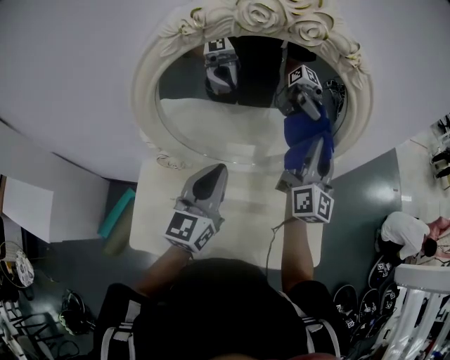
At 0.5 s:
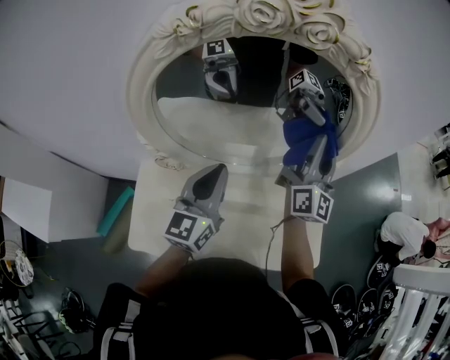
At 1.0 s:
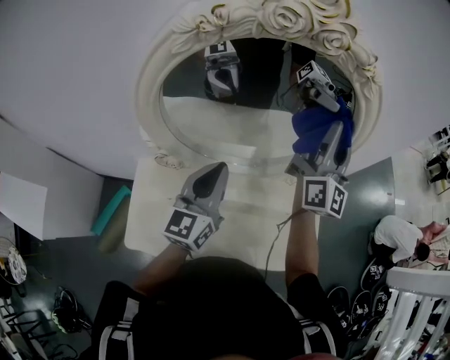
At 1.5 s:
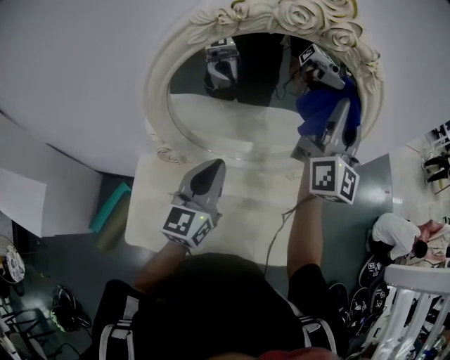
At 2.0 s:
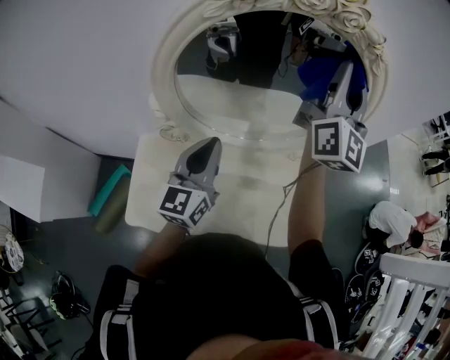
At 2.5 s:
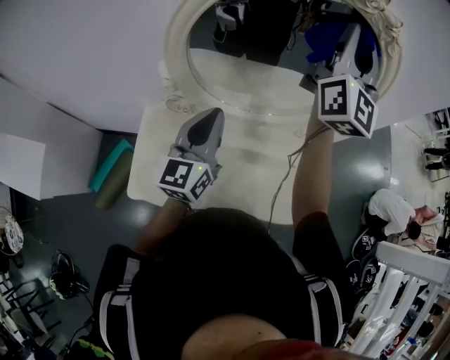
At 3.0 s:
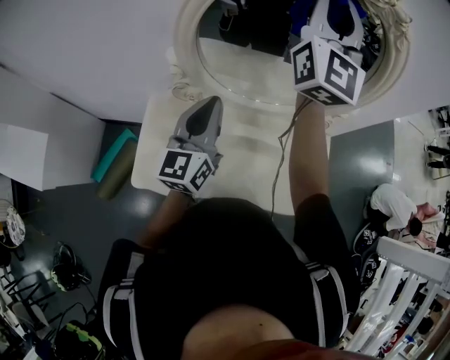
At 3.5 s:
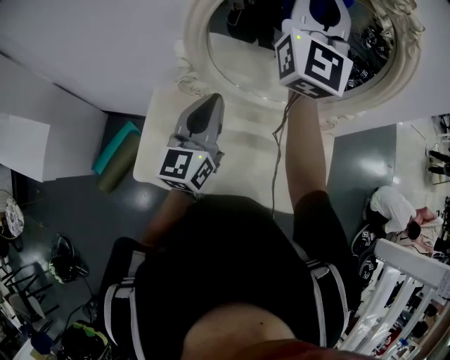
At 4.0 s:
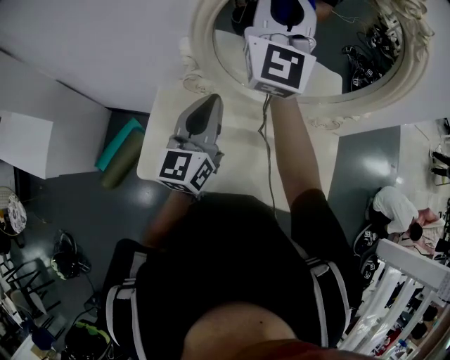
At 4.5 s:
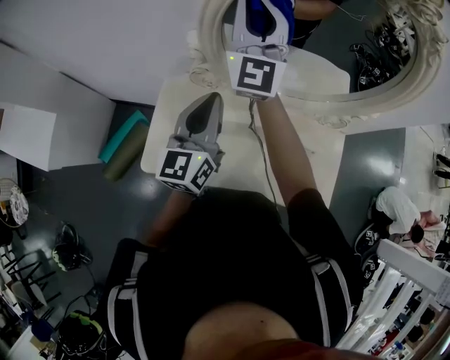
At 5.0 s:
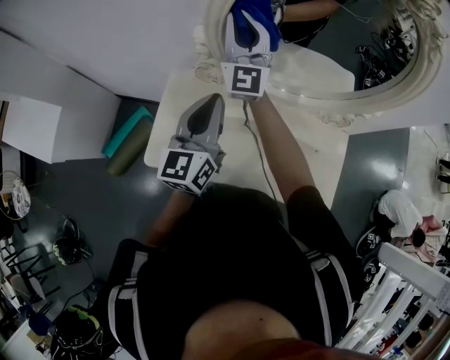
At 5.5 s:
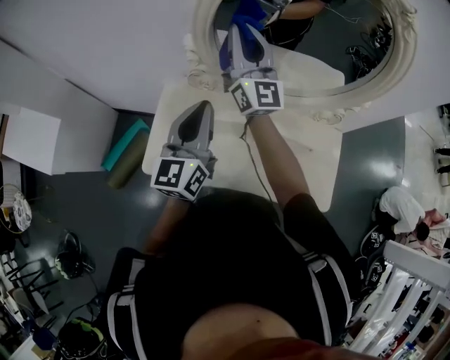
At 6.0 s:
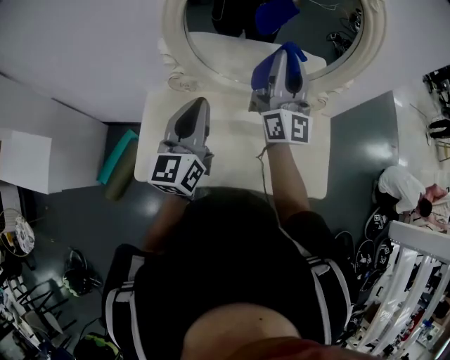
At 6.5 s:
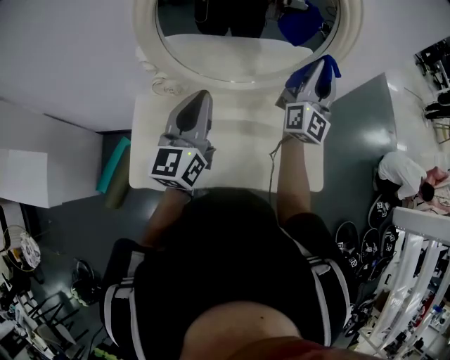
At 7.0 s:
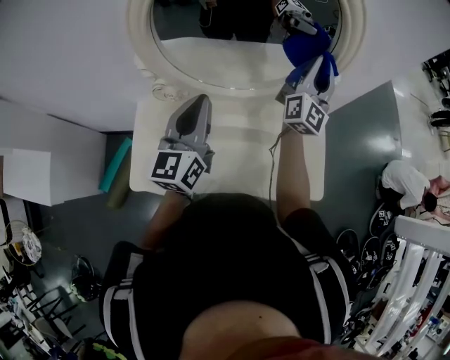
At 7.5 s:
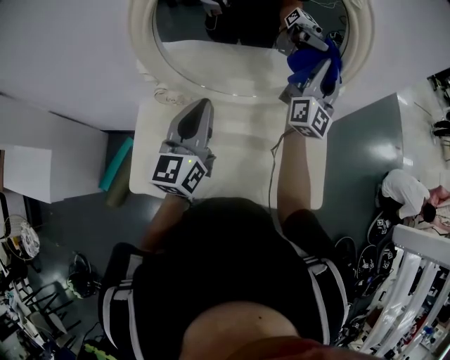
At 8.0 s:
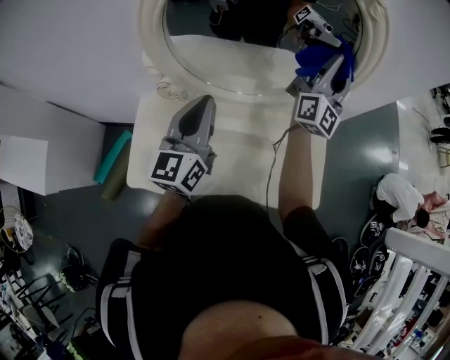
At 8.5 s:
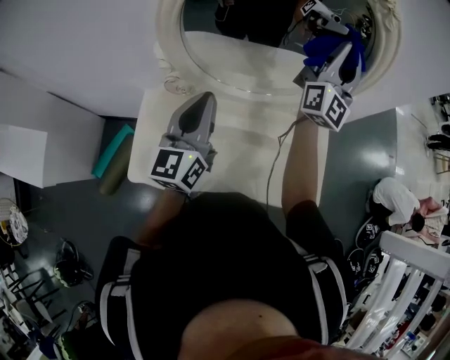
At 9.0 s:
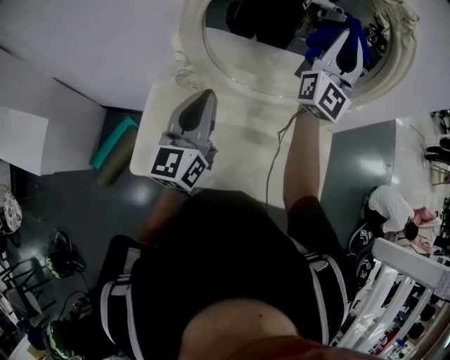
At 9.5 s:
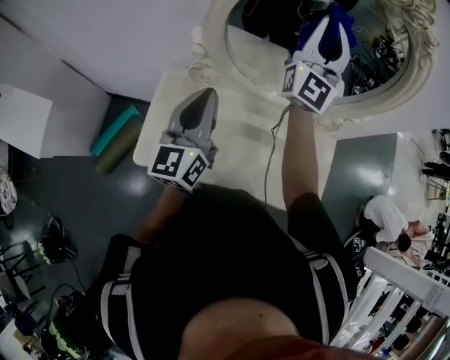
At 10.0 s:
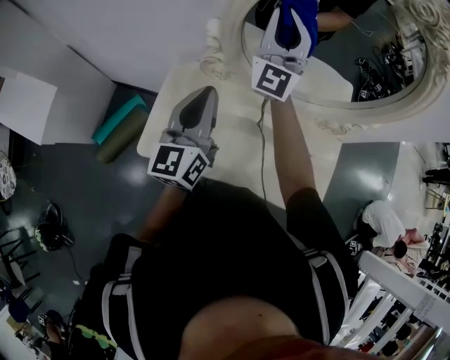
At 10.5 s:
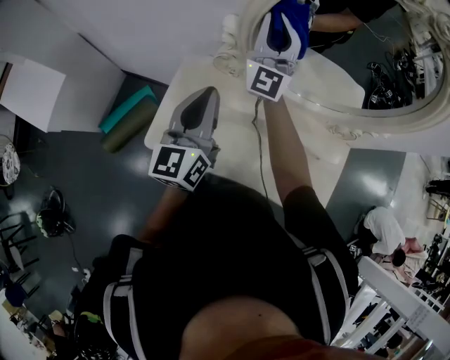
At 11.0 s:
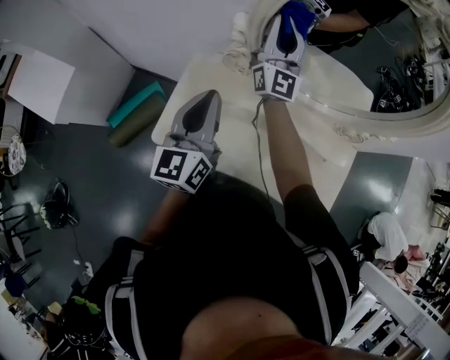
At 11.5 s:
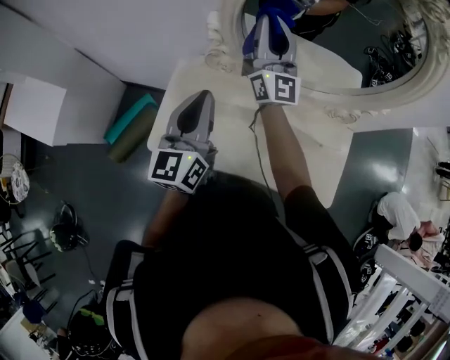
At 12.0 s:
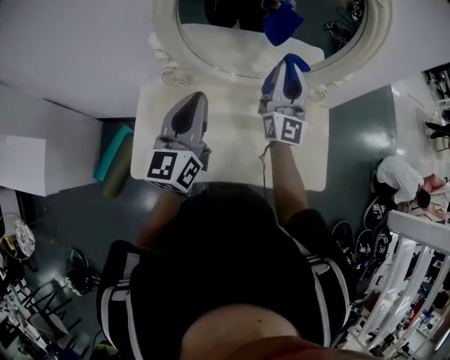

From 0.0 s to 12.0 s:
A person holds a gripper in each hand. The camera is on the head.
From 0.0 s to 2.0 s: The right gripper is displaced upward and to the left by approximately 20 cm. The left gripper ends up approximately 5 cm from where it was.
From 2.0 s to 4.0 s: The left gripper shifts roughly 10 cm to the left, while the right gripper shifts approximately 25 cm to the left, and rotates some 20 degrees.
From 4.0 s to 6.0 s: The right gripper heads to the right, downward and backward, covering roughly 20 cm, and swivels some 30 degrees. Meanwhile the left gripper changes place by roughly 5 cm.
From 6.0 s to 8.0 s: The left gripper goes approximately 5 cm forward, while the right gripper is displaced to the right and forward by roughly 20 cm, and turns by some 20 degrees.
From 8.0 s to 10.0 s: The left gripper ends up about 15 cm from where it was, while the right gripper moves roughly 10 cm upward and comes back, and changes its angle by some 40 degrees.
From 10.0 s to 12.0 s: The right gripper is displaced to the right, backward and downward by some 25 cm, and rotates approximately 20 degrees, while the left gripper shifts about 10 cm to the right.

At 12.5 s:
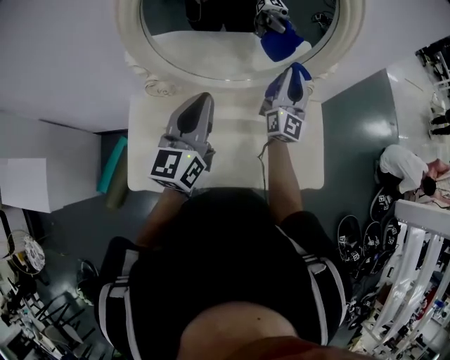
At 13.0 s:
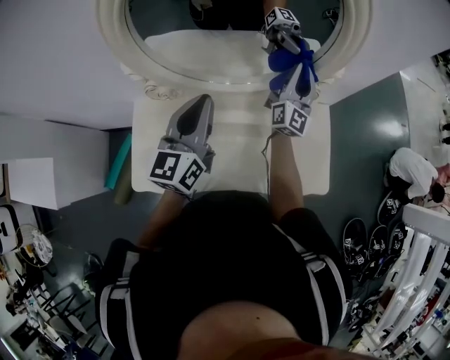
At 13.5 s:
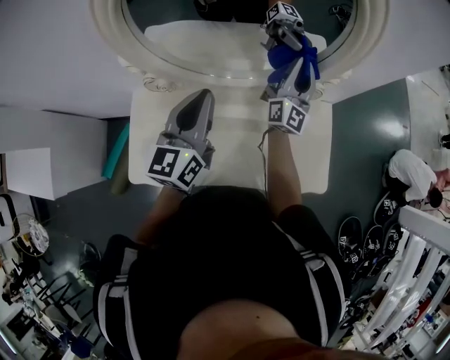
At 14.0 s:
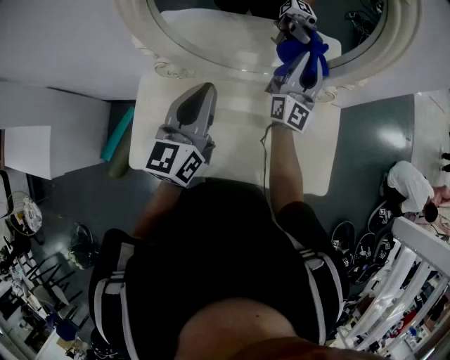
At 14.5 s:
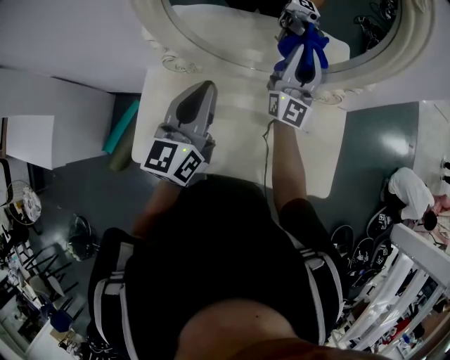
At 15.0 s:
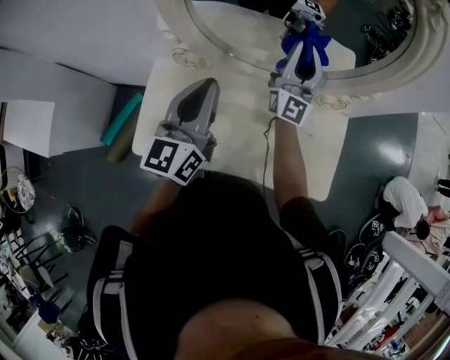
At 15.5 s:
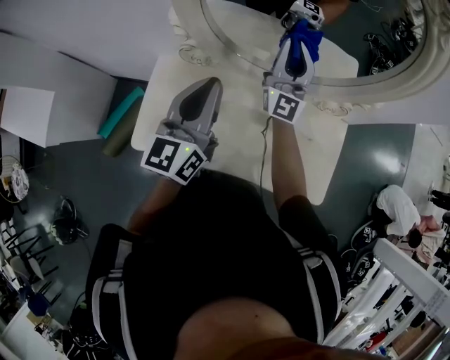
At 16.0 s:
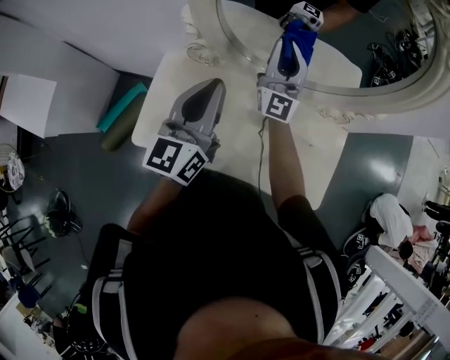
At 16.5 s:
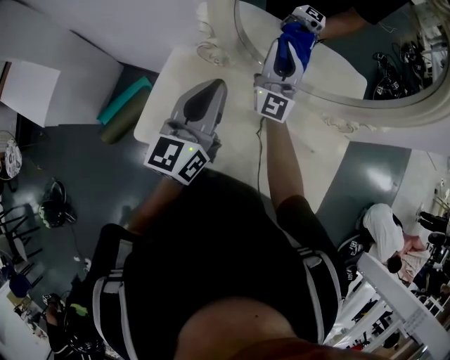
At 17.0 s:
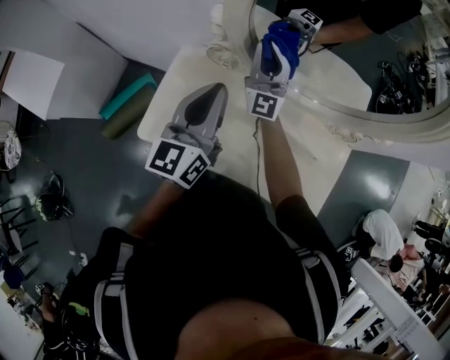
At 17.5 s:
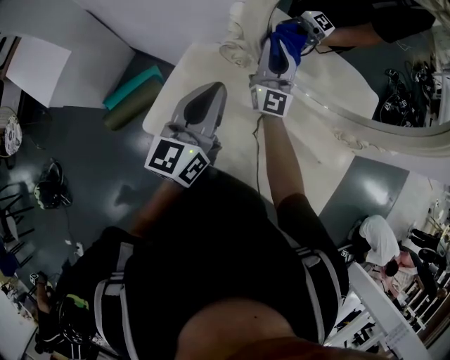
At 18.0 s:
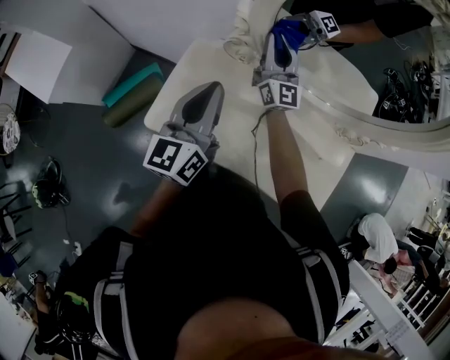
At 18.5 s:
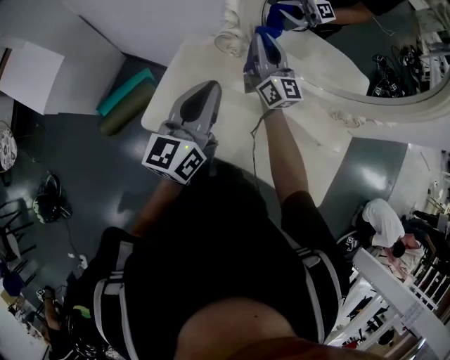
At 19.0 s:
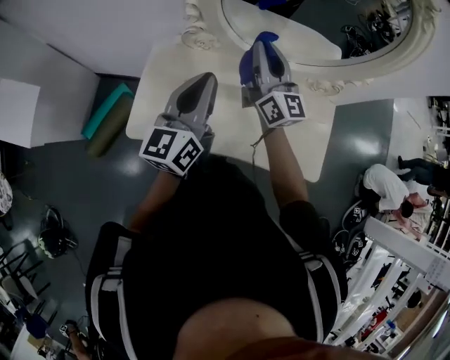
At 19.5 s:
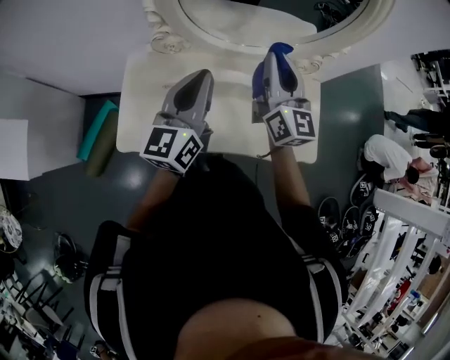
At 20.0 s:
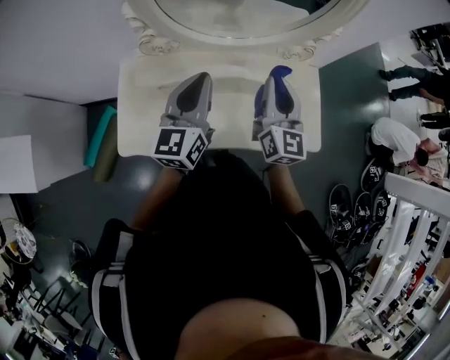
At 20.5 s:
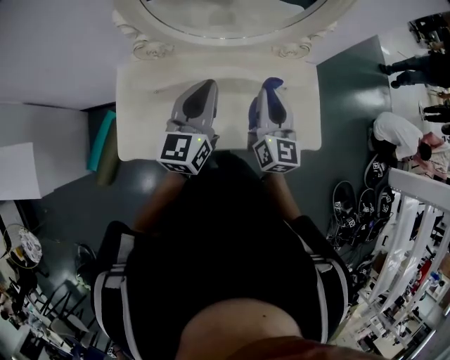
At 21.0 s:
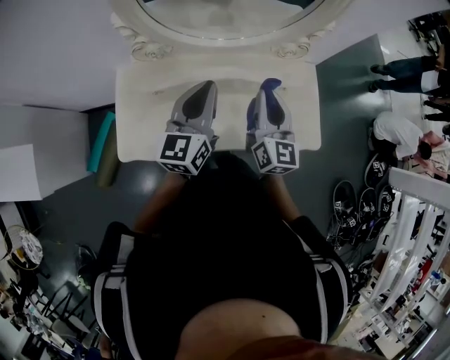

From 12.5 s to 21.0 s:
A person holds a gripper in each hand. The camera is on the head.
From 12.5 s to 14.5 s: The right gripper shifts roughly 10 cm to the left.
From 14.5 s to 16.5 s: The left gripper heads to the left, covering approximately 5 cm, while the right gripper heads to the left, covering some 15 cm, and changes its angle by approximately 20 degrees.
From 16.5 s to 19.0 s: The left gripper goes approximately 5 cm backward. The right gripper travels backward by roughly 10 cm, and changes its angle by approximately 40 degrees.
From 19.0 s to 21.0 s: The left gripper heads to the right, covering roughly 15 cm, while the right gripper travels to the right and backward by roughly 20 cm, and swivels about 30 degrees.

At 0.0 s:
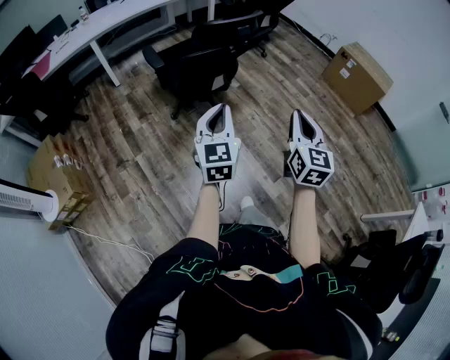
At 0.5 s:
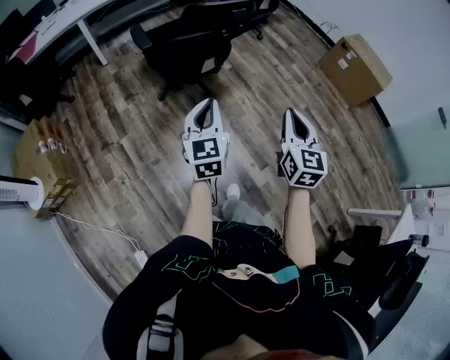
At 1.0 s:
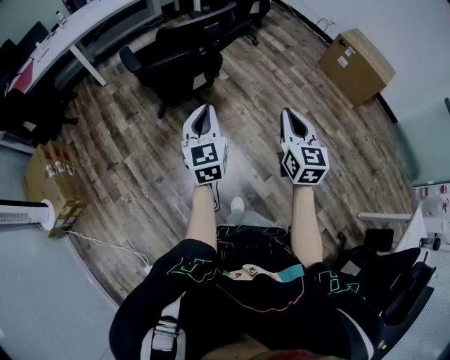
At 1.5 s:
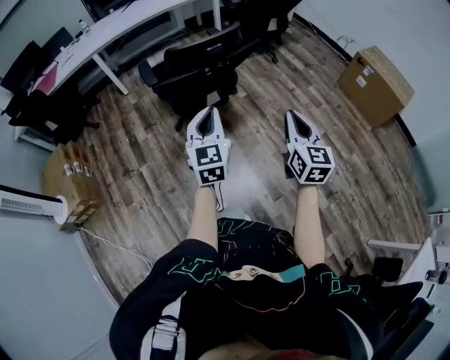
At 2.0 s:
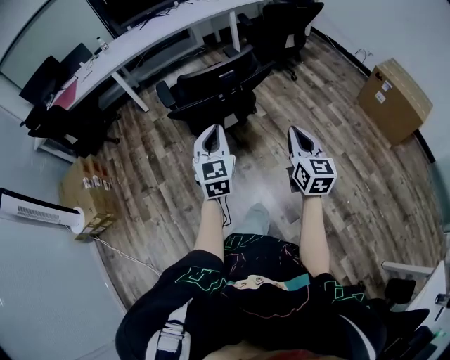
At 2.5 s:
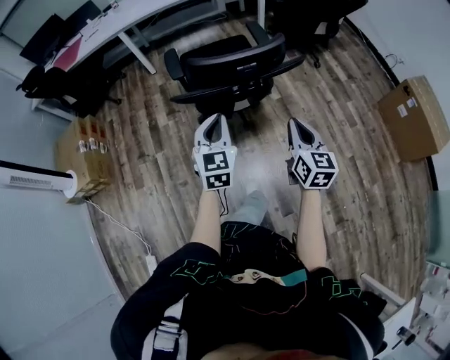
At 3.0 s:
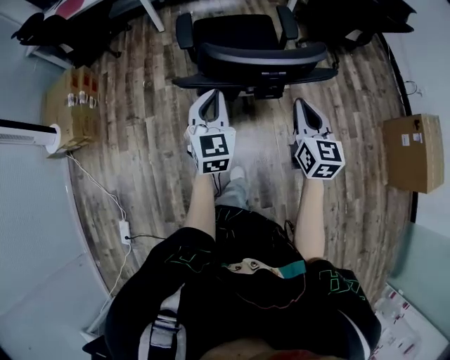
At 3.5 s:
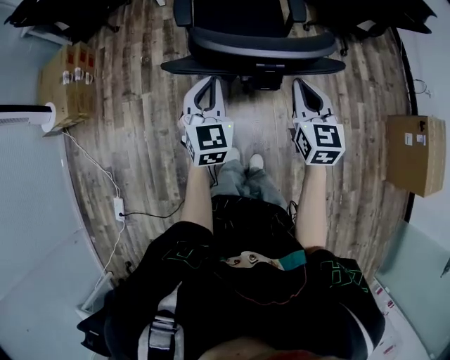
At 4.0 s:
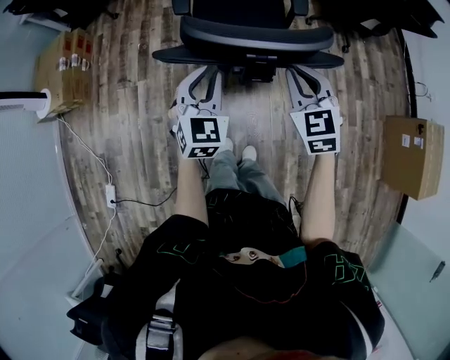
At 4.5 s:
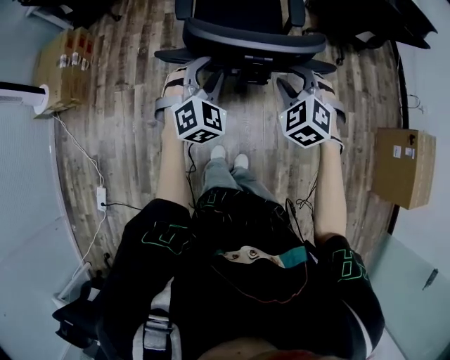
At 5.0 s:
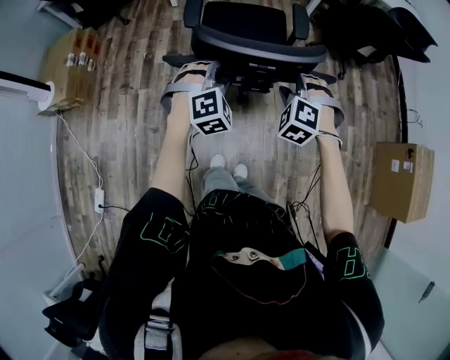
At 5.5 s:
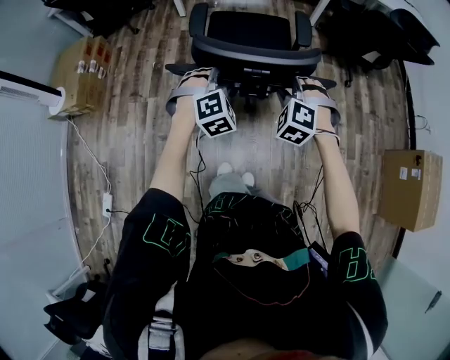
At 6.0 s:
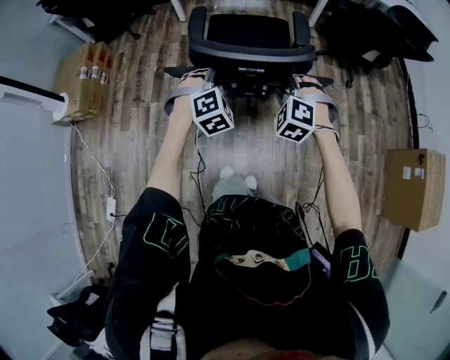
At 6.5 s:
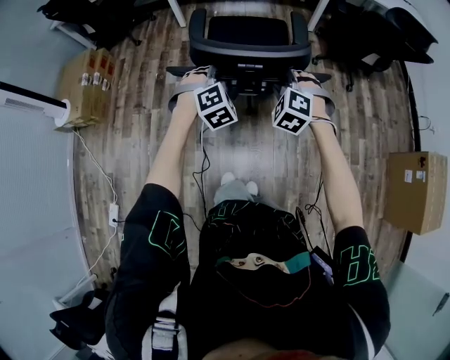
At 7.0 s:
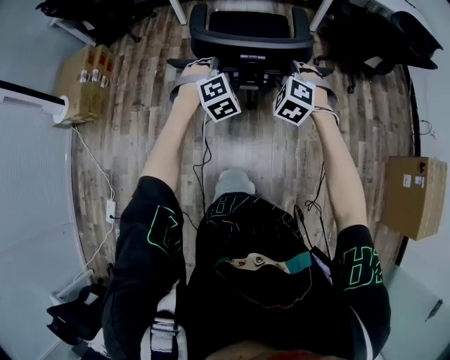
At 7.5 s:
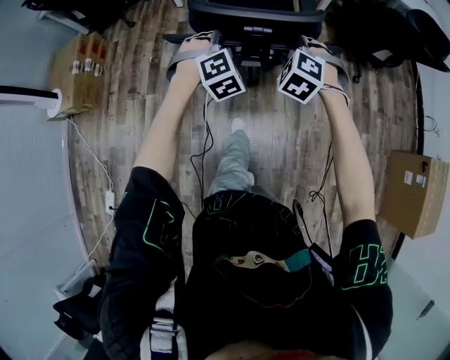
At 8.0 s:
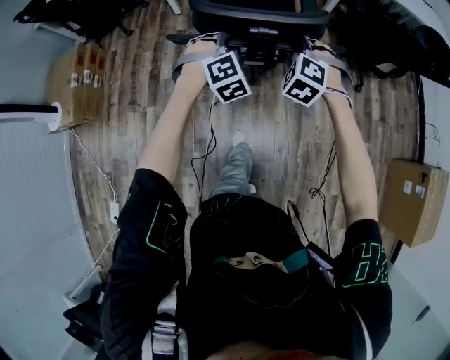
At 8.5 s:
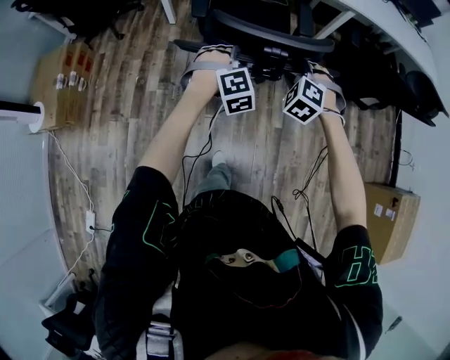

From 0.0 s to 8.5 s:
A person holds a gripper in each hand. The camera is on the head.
From 0.0 s to 2.0 s: Both grippers travel together forward and to the right, approximately 25 cm.
From 2.0 s to 4.0 s: The left gripper travels forward and downward by some 20 cm, and swivels some 20 degrees, while the right gripper travels forward by roughly 30 cm, and turns by roughly 50 degrees.
From 4.0 s to 6.5 s: The right gripper is displaced forward and downward by about 10 cm, rolls counterclockwise, seen from behind, by roughly 40 degrees, and opens. The left gripper goes roughly 10 cm forward, and rotates around the line of its fingers by some 40 degrees, clockwise from behind.
From 6.5 s to 8.5 s: The two grippers go roughly 30 cm forward.
